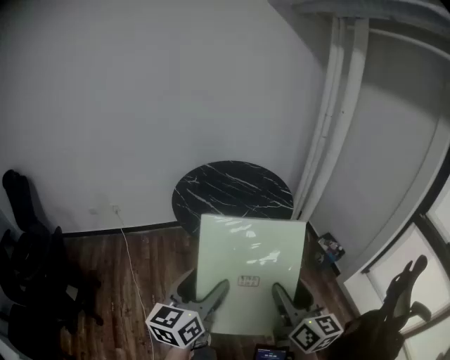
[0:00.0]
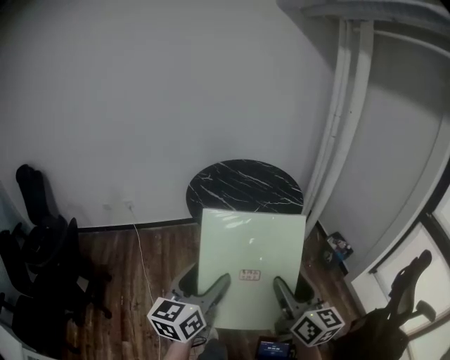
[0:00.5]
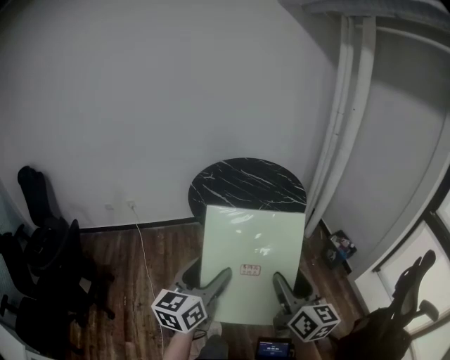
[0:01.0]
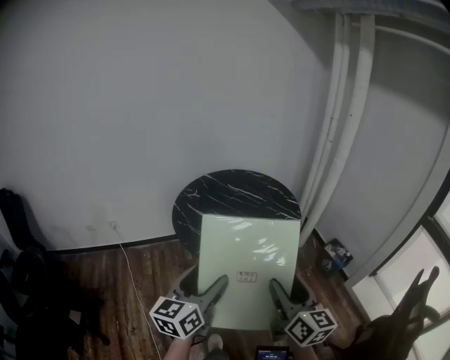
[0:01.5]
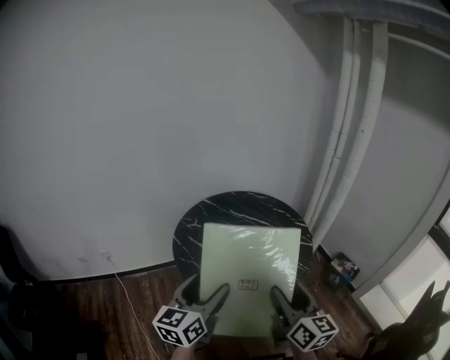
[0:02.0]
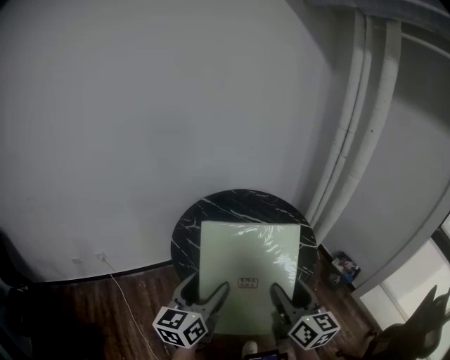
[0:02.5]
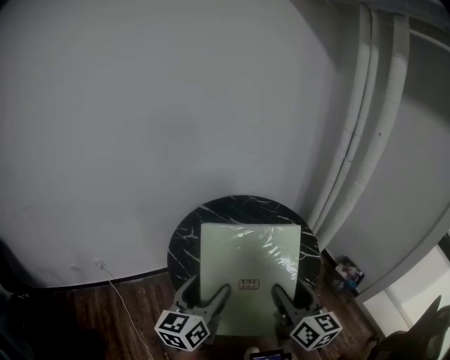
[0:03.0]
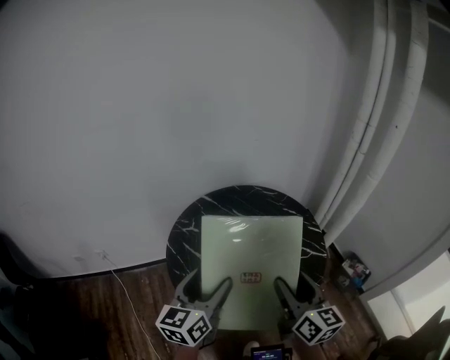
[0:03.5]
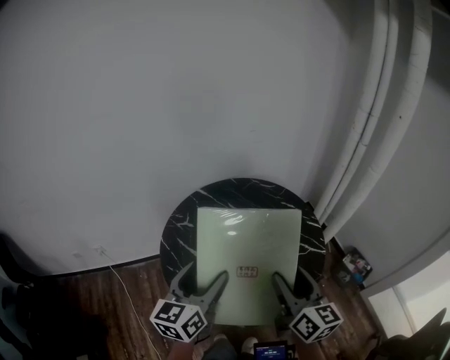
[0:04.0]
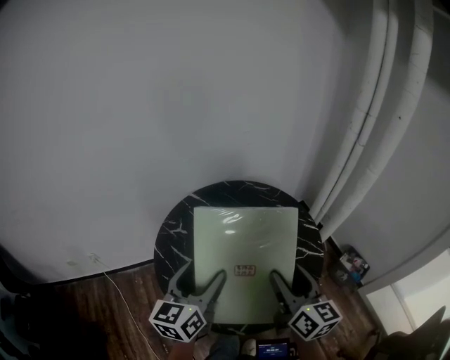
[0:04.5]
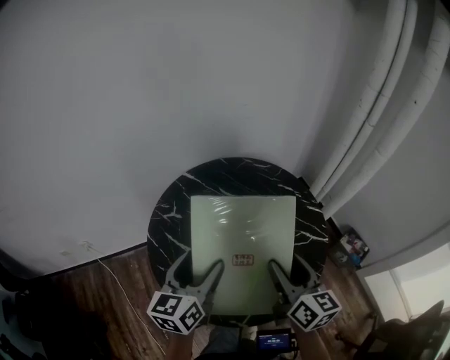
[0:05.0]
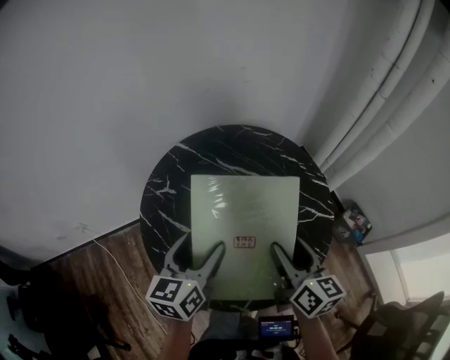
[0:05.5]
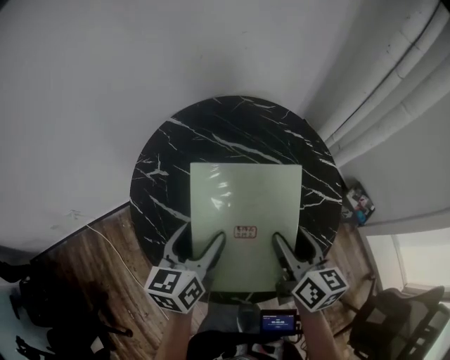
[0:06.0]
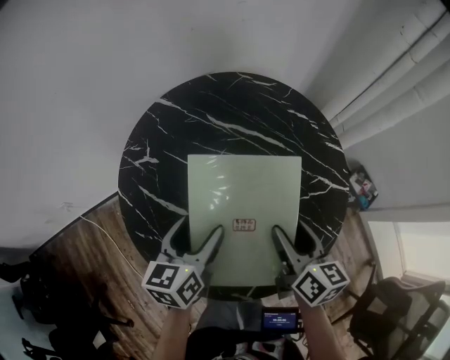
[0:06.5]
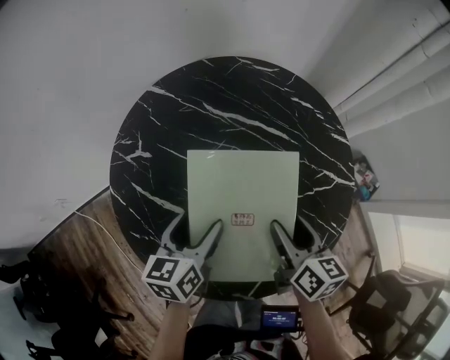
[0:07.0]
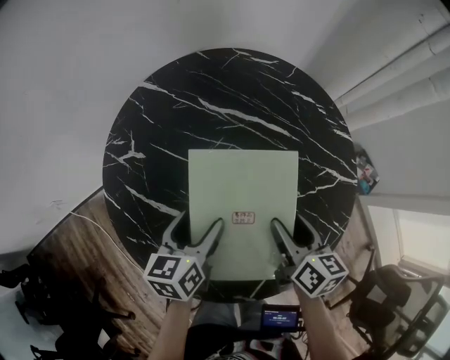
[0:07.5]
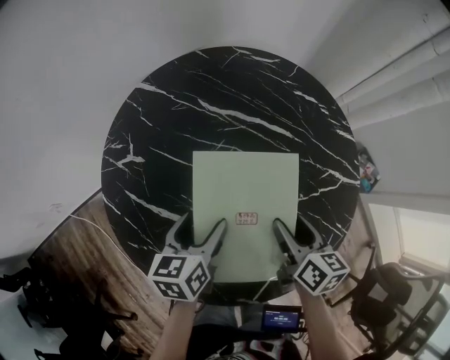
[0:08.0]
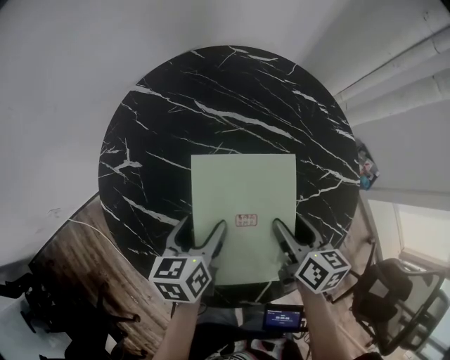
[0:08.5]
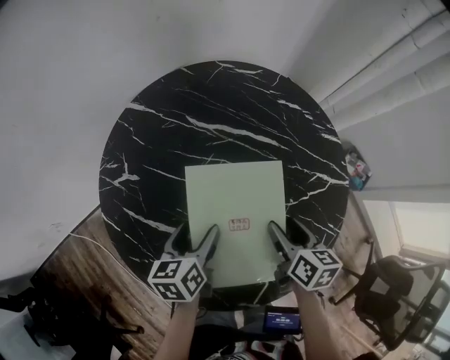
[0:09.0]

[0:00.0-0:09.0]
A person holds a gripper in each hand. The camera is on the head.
0:00.0 to 0:02.0: Both grippers travel together forward and to the left, roughly 30 cm.
0:02.0 to 0:04.5: The grippers both shift forward by roughly 25 cm.
0:04.5 to 0:07.0: The two grippers go some 25 cm downward. The left gripper turns by about 30 degrees. The right gripper swivels roughly 30 degrees.
0:07.0 to 0:09.0: Both grippers travel together downward, approximately 5 cm.

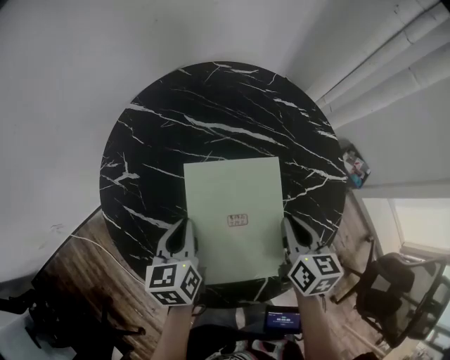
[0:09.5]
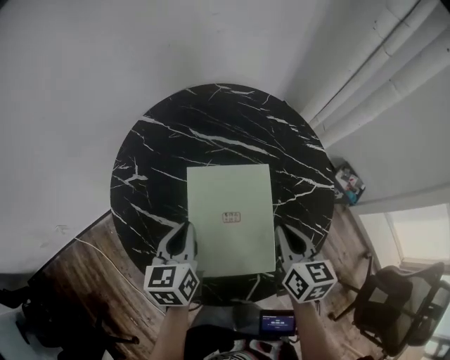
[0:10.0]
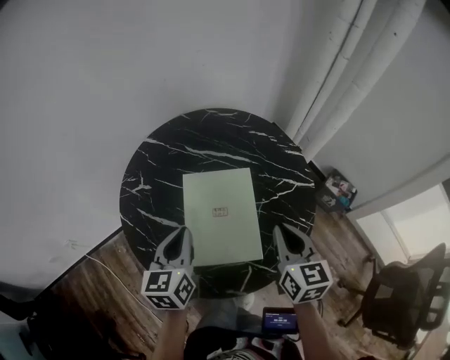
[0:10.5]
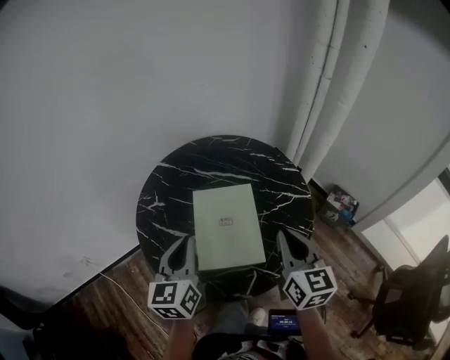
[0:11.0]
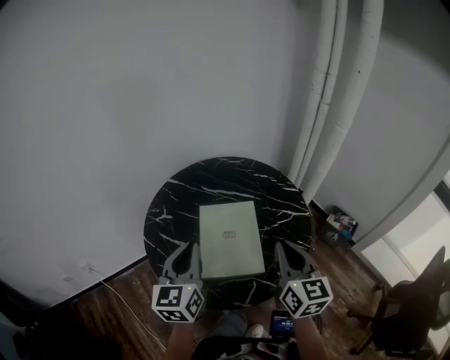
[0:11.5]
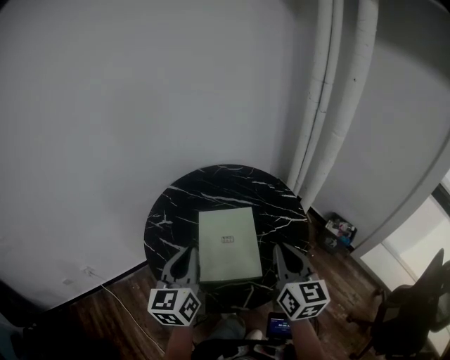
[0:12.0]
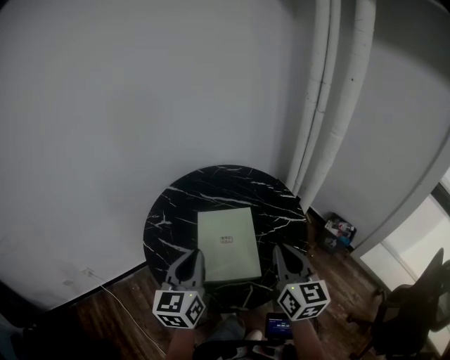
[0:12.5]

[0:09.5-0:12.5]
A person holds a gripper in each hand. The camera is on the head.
0:09.5 to 0:11.0: Both grippers move upward and backward, about 25 cm. The right gripper changes its angle by roughly 30 degrees, while the left gripper turns by about 30 degrees.
0:11.0 to 0:12.5: The right gripper moves about 5 cm. Meanwhile the left gripper changes place by roughly 5 cm.

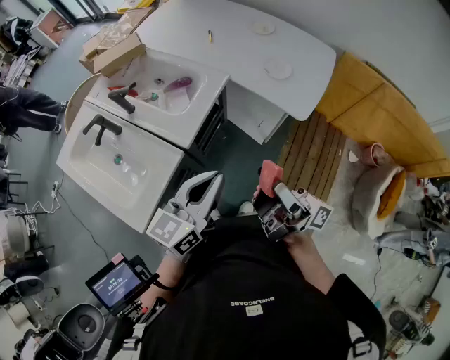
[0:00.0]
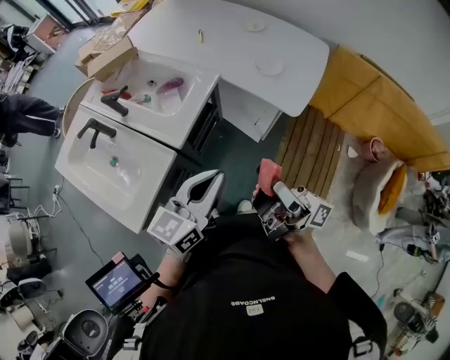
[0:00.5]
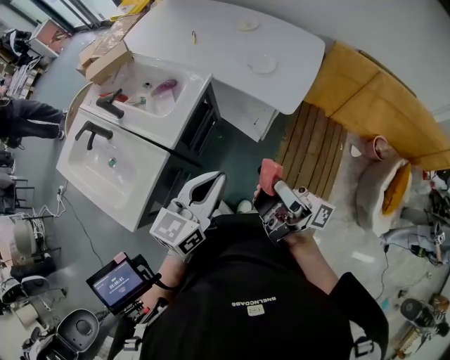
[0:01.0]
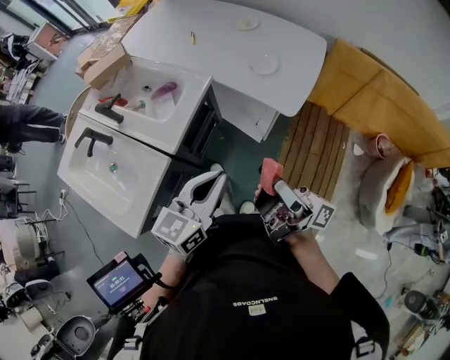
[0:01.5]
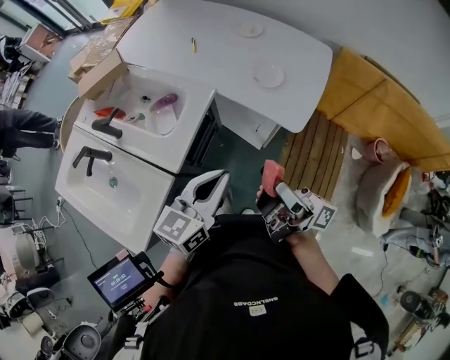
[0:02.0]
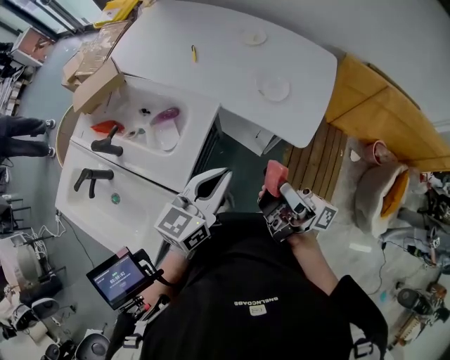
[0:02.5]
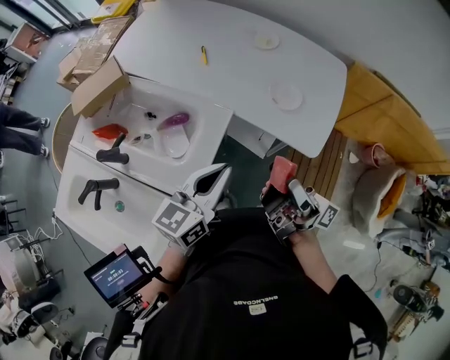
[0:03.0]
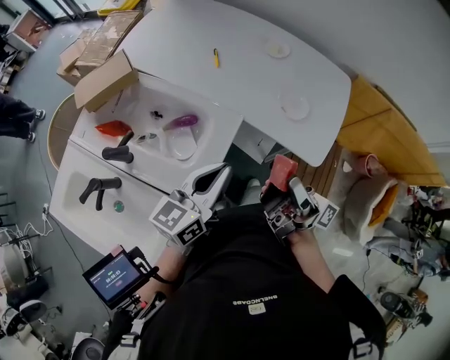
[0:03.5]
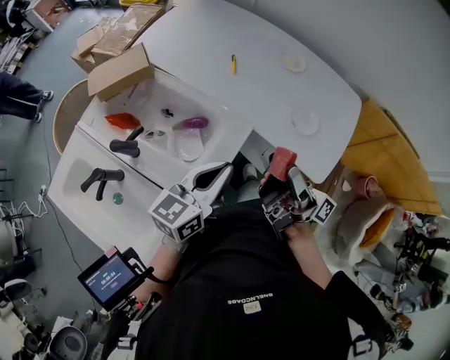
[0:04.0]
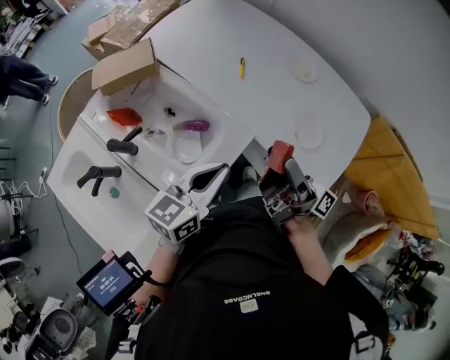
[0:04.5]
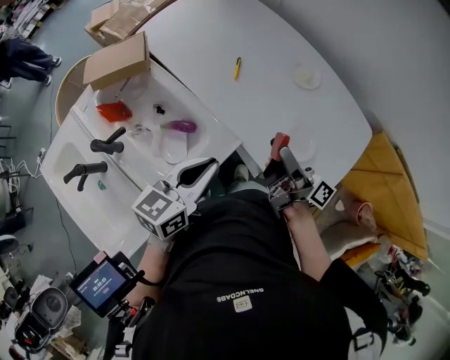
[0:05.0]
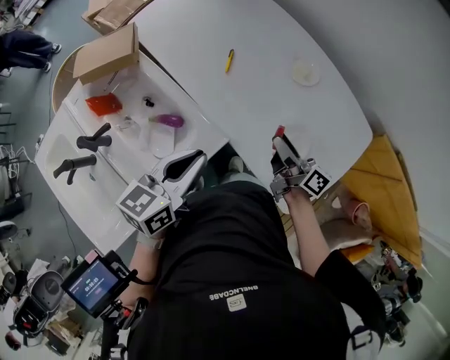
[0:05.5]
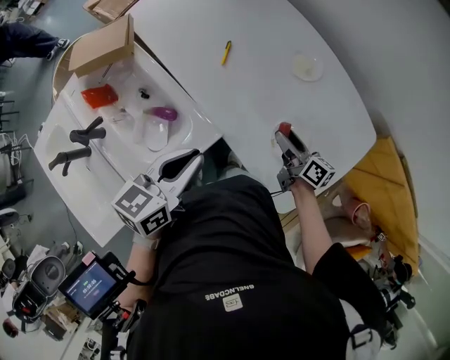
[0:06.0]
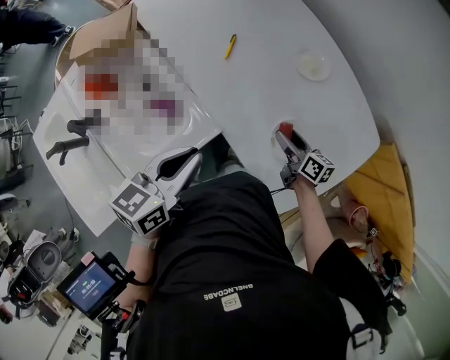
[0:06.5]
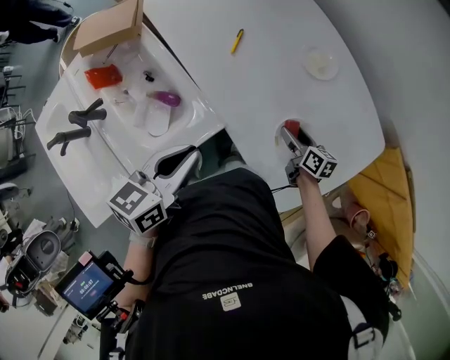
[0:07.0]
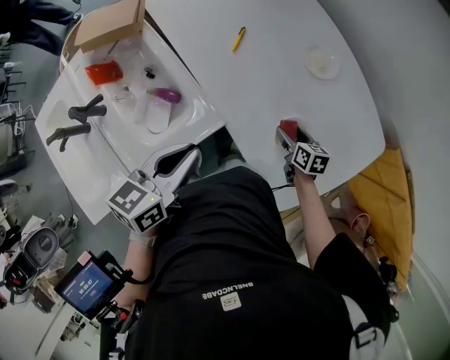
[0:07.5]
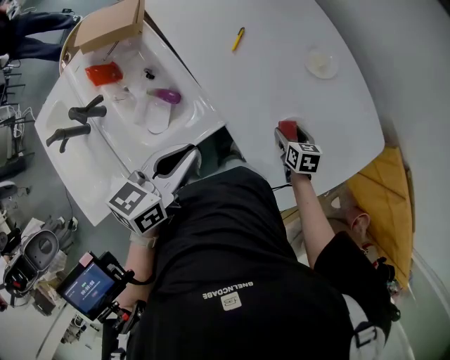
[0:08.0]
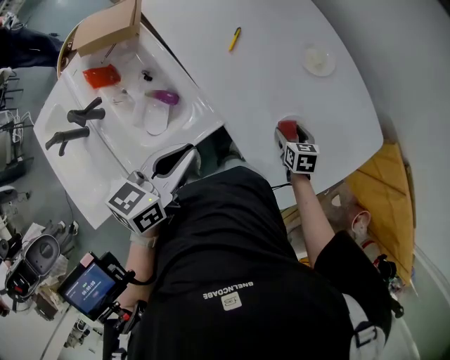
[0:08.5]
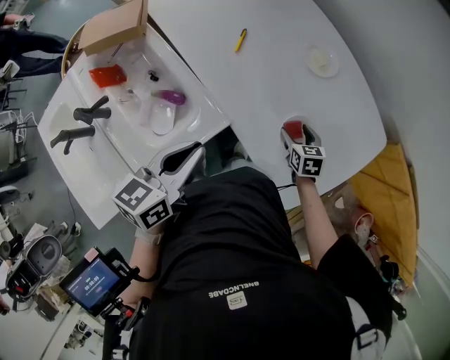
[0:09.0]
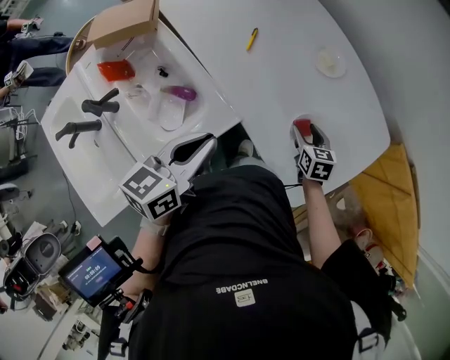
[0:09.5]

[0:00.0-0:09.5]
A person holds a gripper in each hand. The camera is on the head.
0:00.0 to 0:02.0: Both grippers travel together forward and to the right, roughly 10 cm.
0:02.0 to 0:04.0: The two grippers go some 25 cm forward and to the left.
0:04.0 to 0:05.5: The right gripper is displaced forward, downward and to the right by some 30 cm, and changes its angle by some 30 degrees; the left gripper travels forward and to the right by some 15 cm.
0:05.5 to 0:07.5: The right gripper is displaced downward by some 20 cm, and points its fingers some 50 degrees further downward.
0:07.5 to 0:09.5: The left gripper heads to the left, covering some 5 cm. Meanwhile the right gripper changes place by about 5 cm, and turns by about 20 degrees.

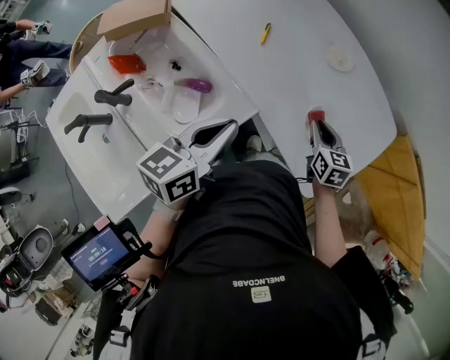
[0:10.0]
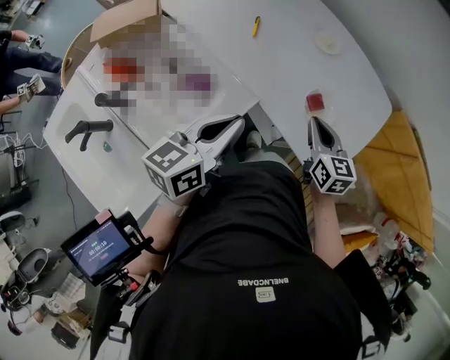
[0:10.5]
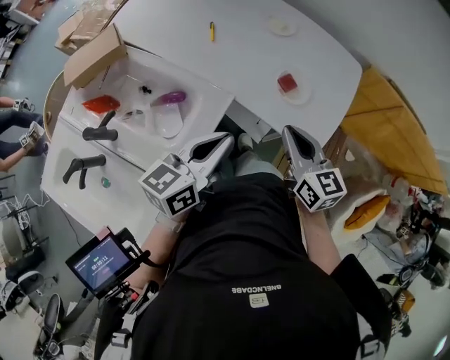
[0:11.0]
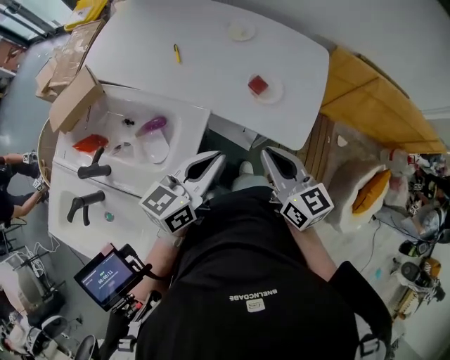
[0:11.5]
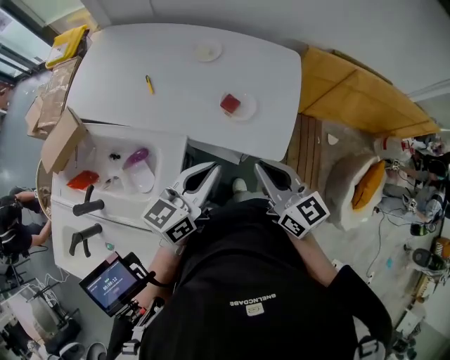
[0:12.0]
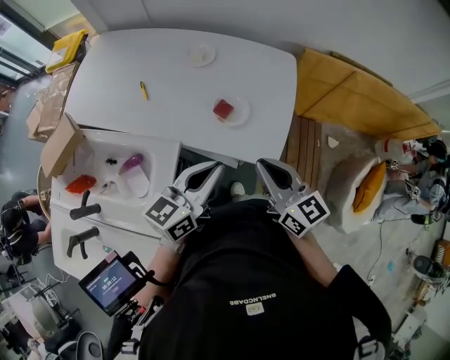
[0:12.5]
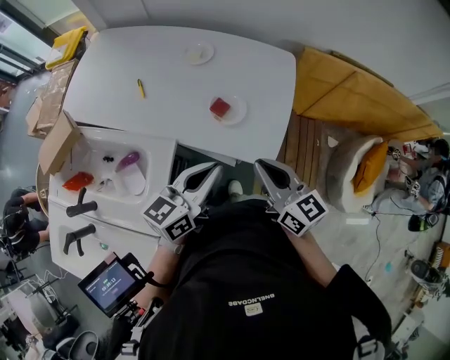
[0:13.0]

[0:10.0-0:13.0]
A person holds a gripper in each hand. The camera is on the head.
0:10.0 to 0:11.5: The right gripper moves backward and upward, about 30 cm, and swivels roughly 30 degrees. The left gripper shifts roughly 15 cm backward and to the right, and swivels about 30 degrees.
0:11.5 to 0:13.0: The right gripper is displaced to the right by roughly 10 cm, while the left gripper goes about 10 cm to the right and forward.

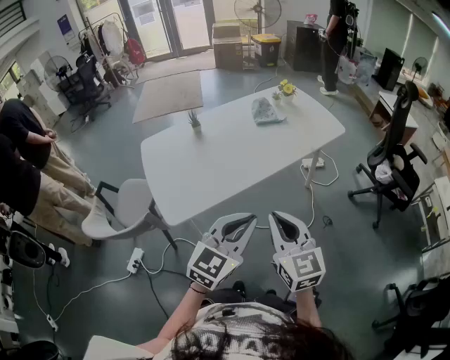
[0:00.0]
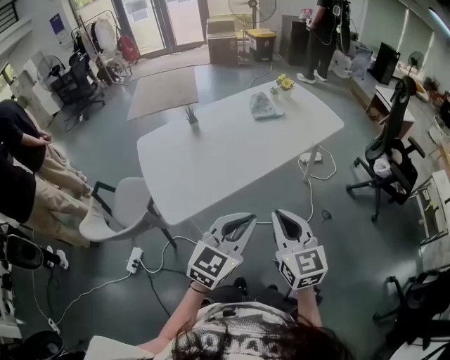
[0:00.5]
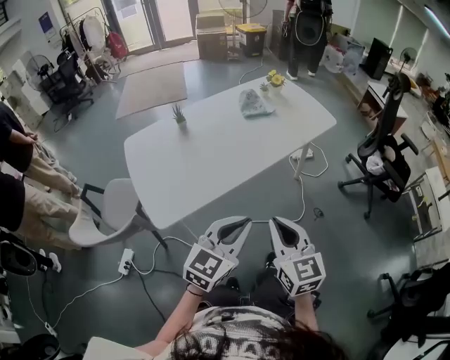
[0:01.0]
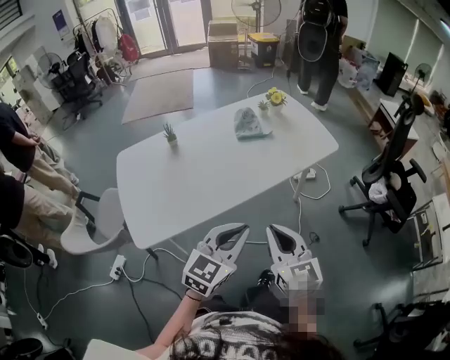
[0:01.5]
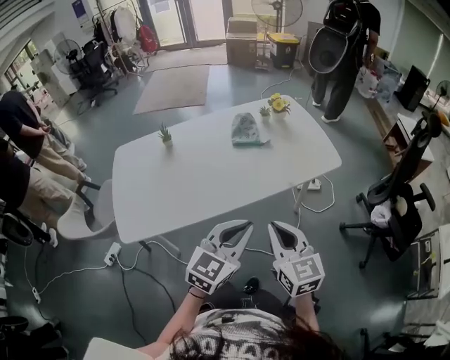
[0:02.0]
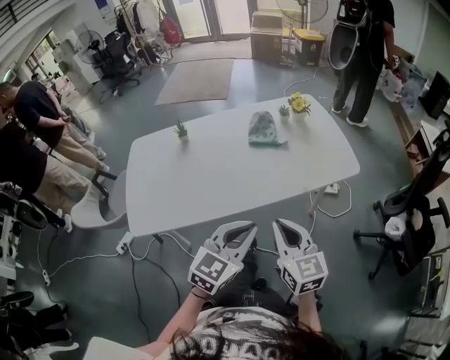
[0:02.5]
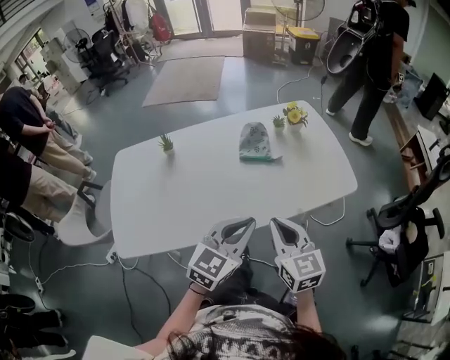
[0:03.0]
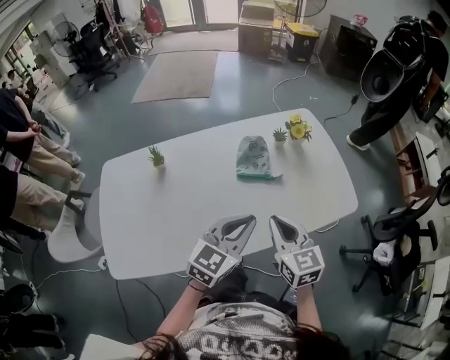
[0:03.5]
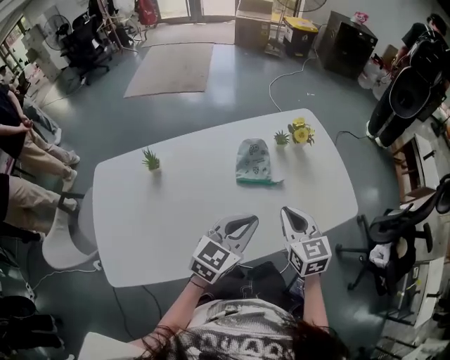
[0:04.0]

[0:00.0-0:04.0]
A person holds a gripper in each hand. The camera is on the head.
0:00.0 to 0:02.0: The two grippers go approximately 25 cm forward and to the right.
0:02.0 to 0:04.0: Both grippers move forward, about 30 cm.
